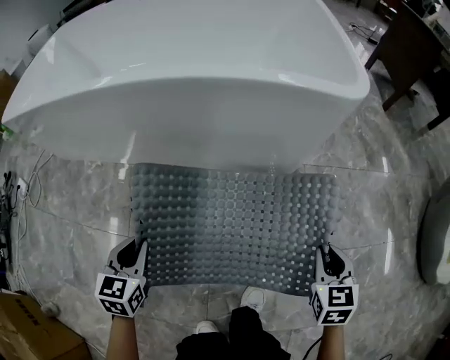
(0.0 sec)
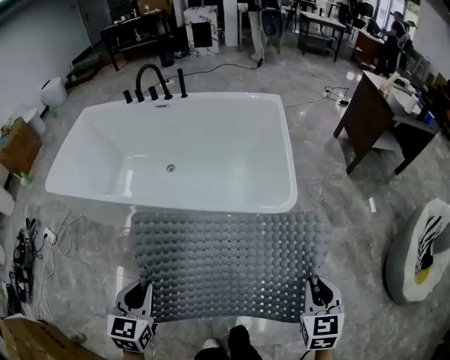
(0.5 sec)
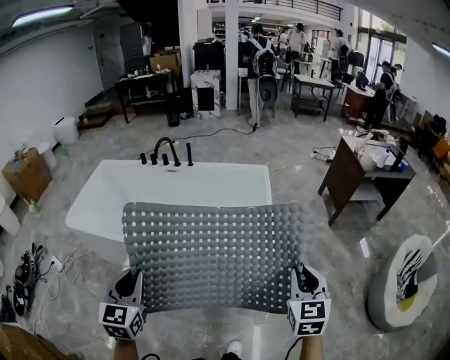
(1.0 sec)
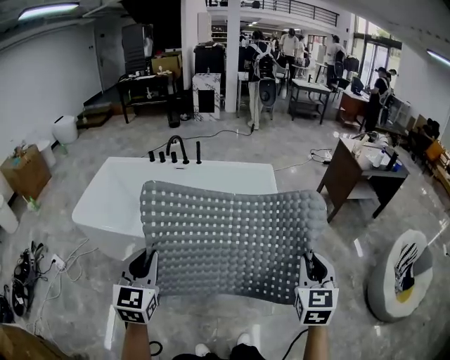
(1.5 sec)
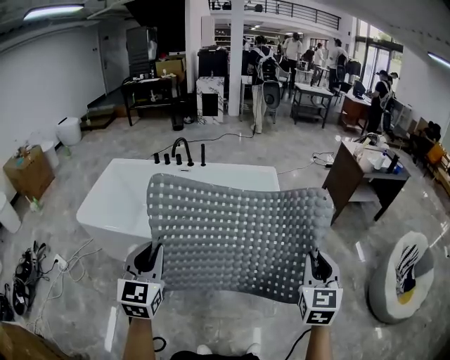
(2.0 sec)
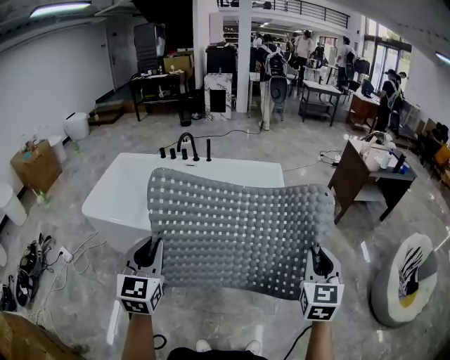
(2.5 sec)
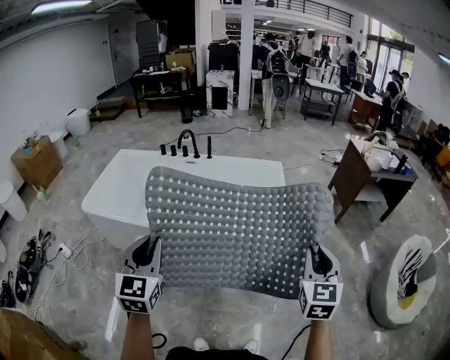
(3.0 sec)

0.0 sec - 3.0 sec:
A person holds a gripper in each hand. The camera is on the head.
0.0 sec - 1.5 sec: The grippers both shift upward by some 70 cm. The right gripper changes its angle by roughly 30 degrees. The left gripper points its fingers roughly 30 degrees further upward.
1.5 sec - 3.0 sec: The grippers stay close to where they were, moving slightly.

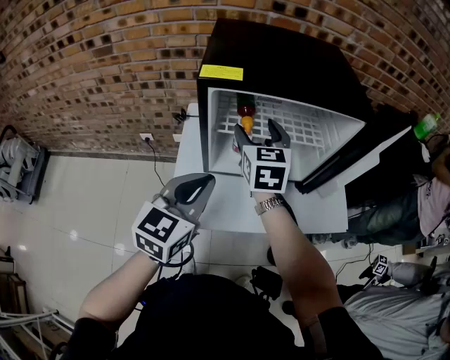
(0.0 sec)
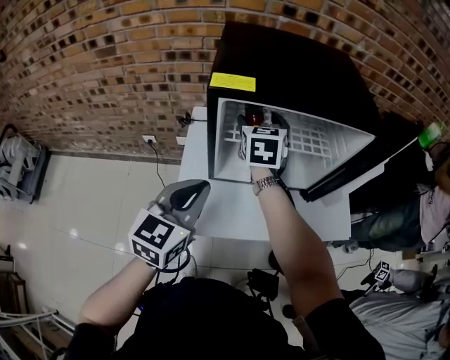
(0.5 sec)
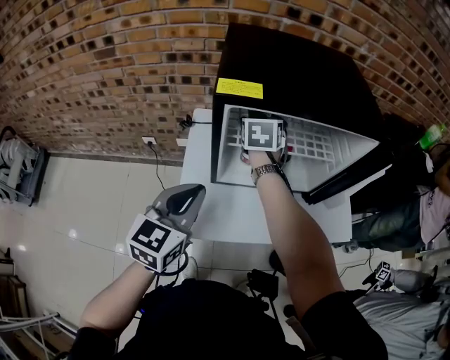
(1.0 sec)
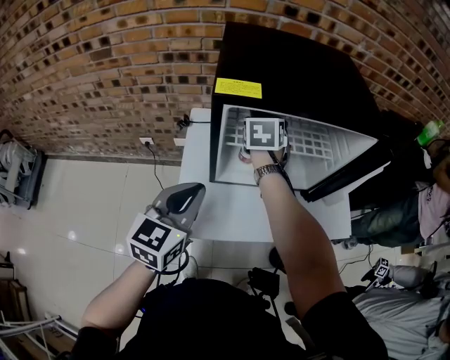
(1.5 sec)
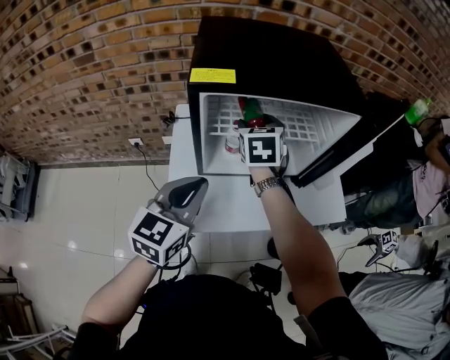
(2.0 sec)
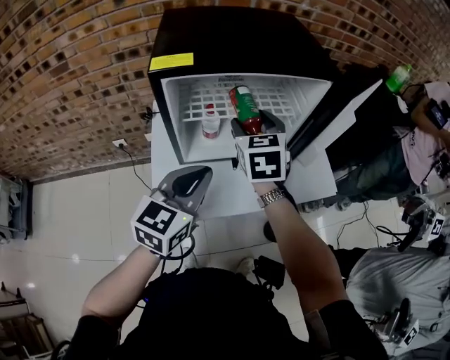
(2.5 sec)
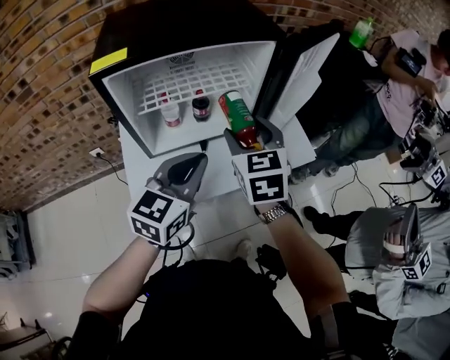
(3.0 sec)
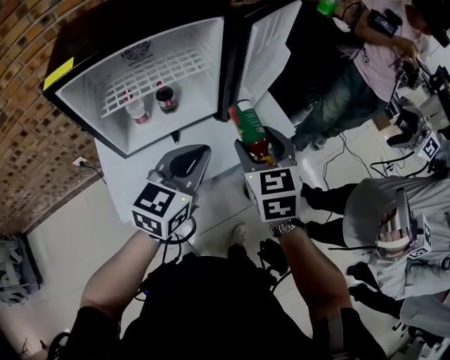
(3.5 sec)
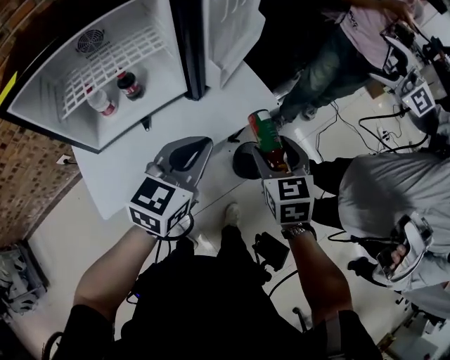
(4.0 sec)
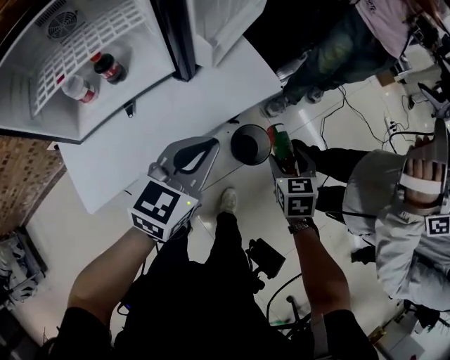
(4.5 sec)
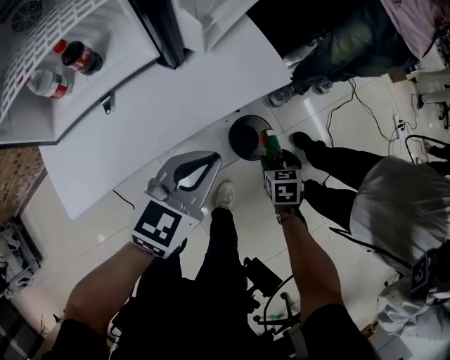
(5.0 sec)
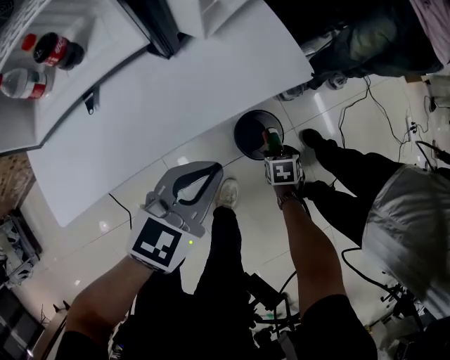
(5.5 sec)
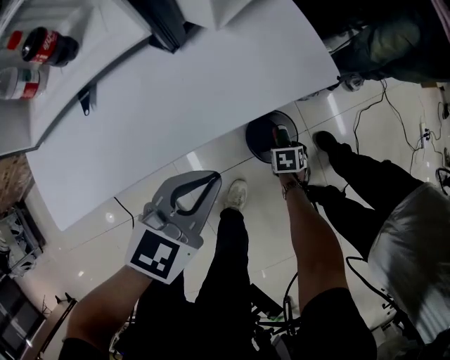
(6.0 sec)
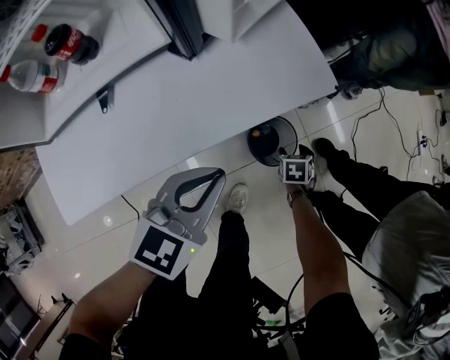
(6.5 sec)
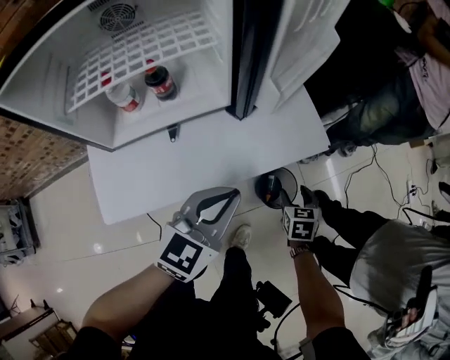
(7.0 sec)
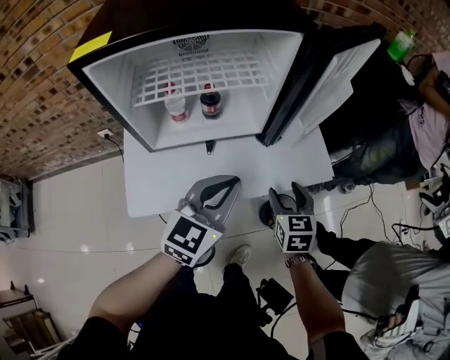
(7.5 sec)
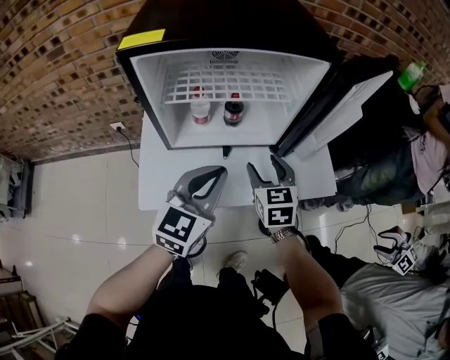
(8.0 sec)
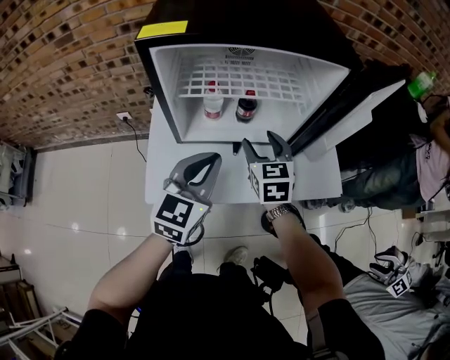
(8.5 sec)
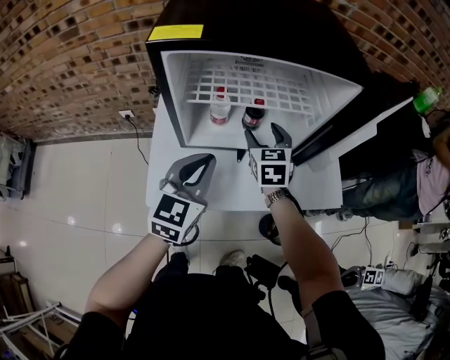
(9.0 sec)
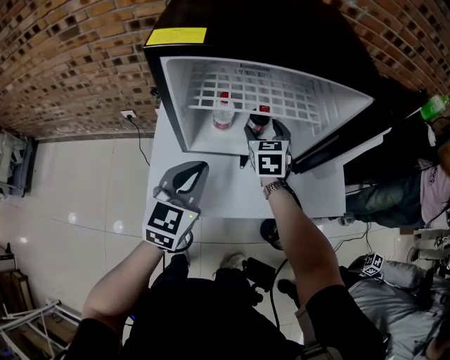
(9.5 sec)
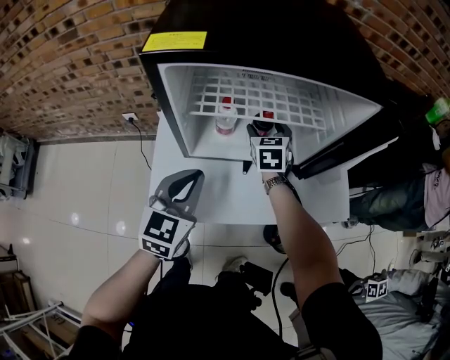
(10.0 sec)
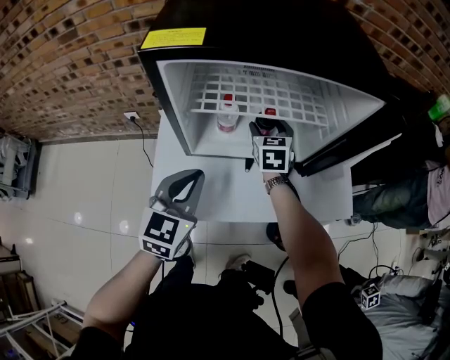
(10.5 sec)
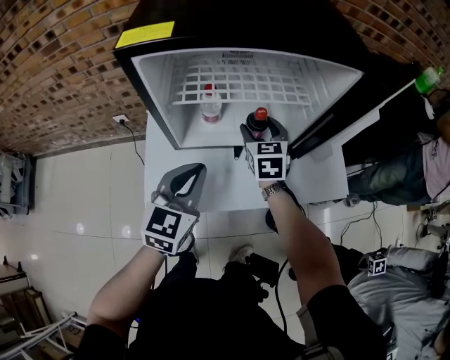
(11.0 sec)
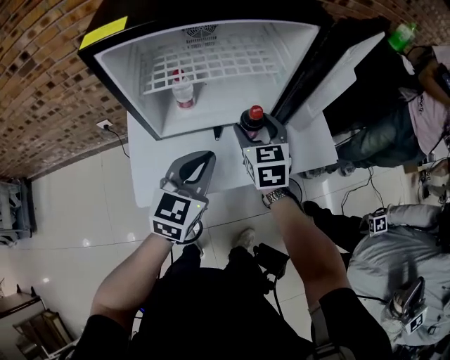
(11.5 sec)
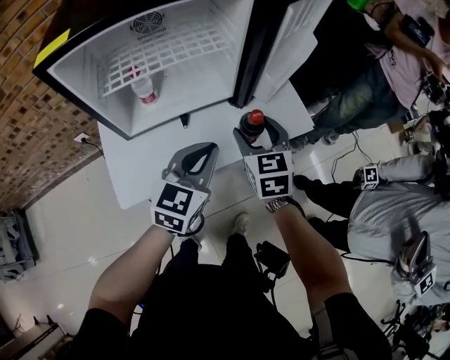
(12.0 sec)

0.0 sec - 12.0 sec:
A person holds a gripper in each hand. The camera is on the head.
0.0 sec - 2.0 sec: The right gripper shifts about 5 cm forward.
2.0 sec - 4.0 sec: The right gripper shifts by approximately 50 cm, and rotates roughly 20 degrees; the left gripper changes place by roughly 30 cm, and rotates approximately 30 degrees.
4.0 sec - 6.0 sec: The left gripper heads downward, covering about 25 cm; the right gripper shifts about 50 cm downward, and tilts its fingers about 40 degrees downward.
6.0 sec - 8.0 sec: The right gripper heads upward, covering roughly 50 cm, and tilts its fingers approximately 50 degrees upward. Meanwhile the left gripper moves upward, roughly 25 cm, and turns by roughly 30 degrees.
8.0 sec - 10.0 sec: The right gripper goes approximately 20 cm forward and to the left. The left gripper moves to the left, about 10 cm.
10.0 sec - 12.0 sec: The left gripper heads to the right, covering some 20 cm, and turns by roughly 30 degrees; the right gripper moves backward and to the right, roughly 30 cm.

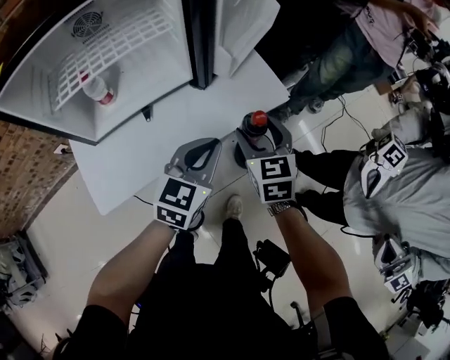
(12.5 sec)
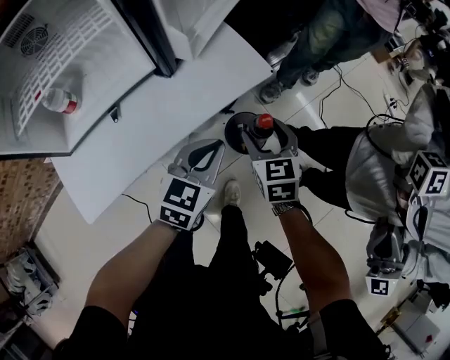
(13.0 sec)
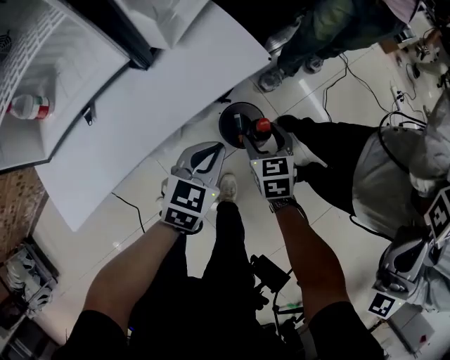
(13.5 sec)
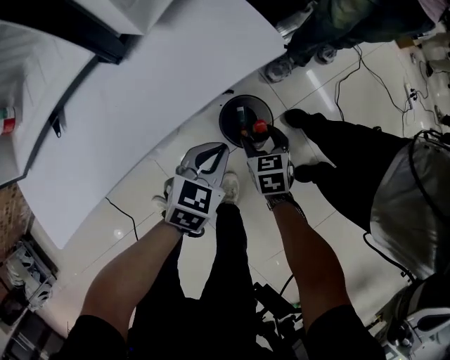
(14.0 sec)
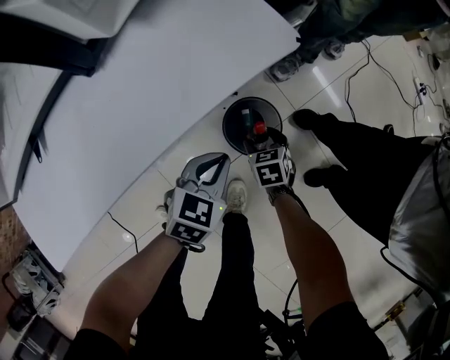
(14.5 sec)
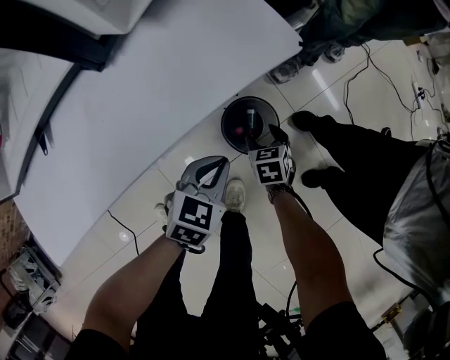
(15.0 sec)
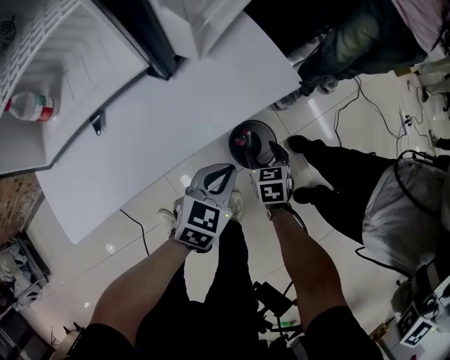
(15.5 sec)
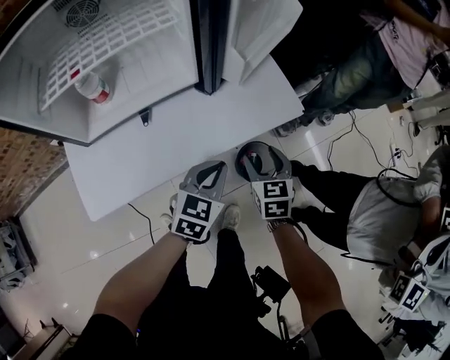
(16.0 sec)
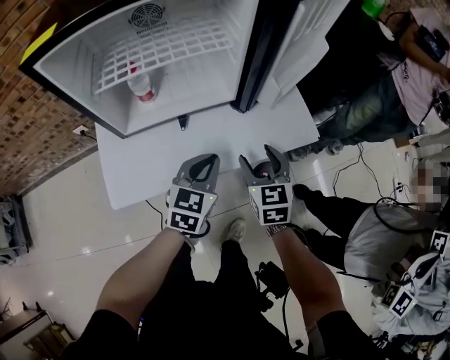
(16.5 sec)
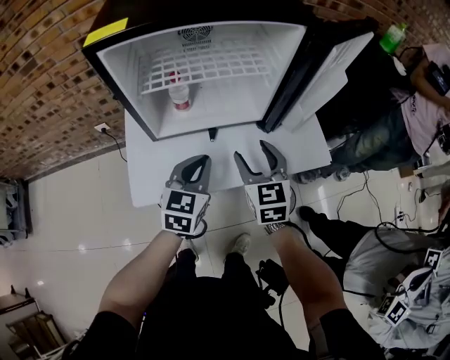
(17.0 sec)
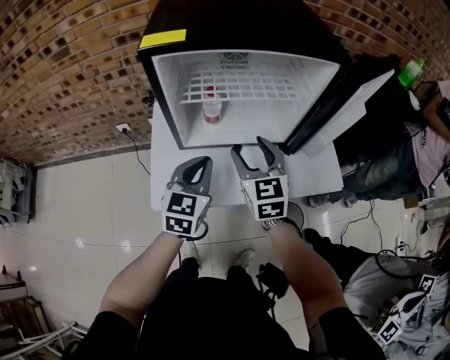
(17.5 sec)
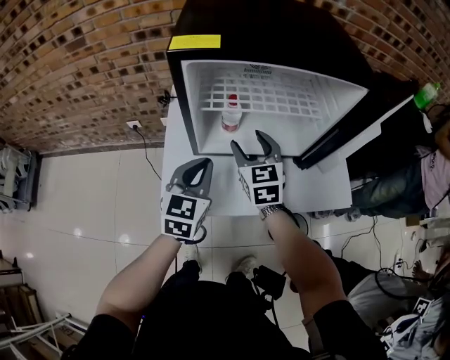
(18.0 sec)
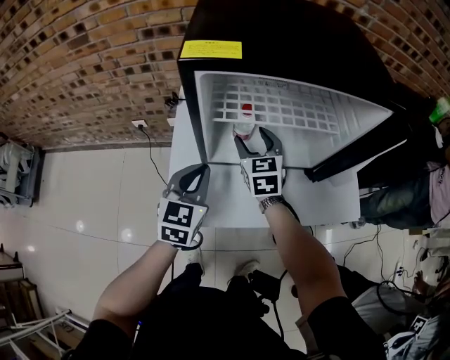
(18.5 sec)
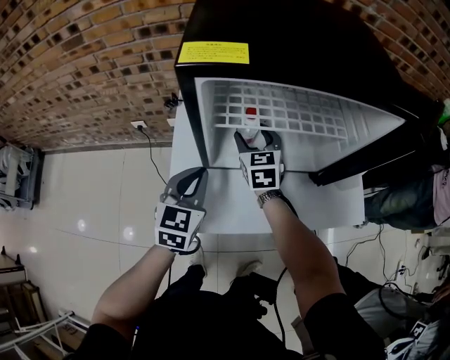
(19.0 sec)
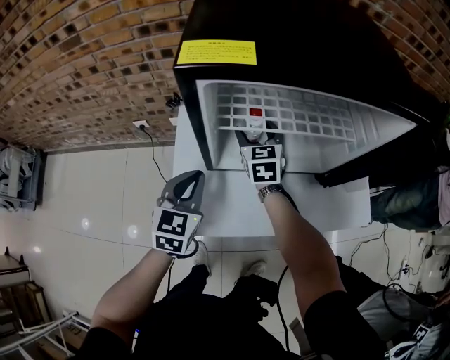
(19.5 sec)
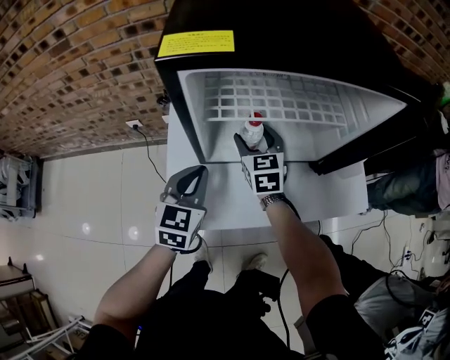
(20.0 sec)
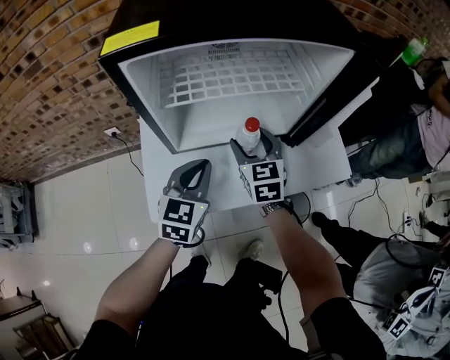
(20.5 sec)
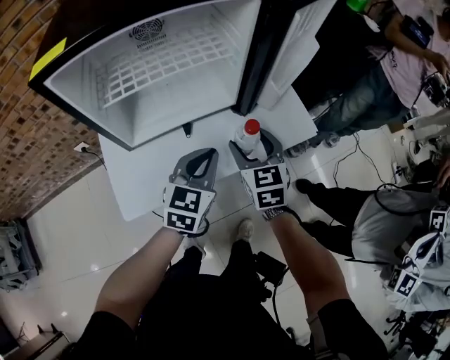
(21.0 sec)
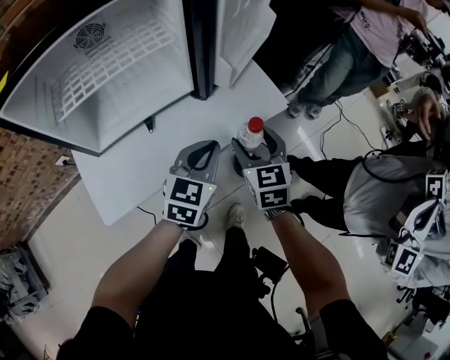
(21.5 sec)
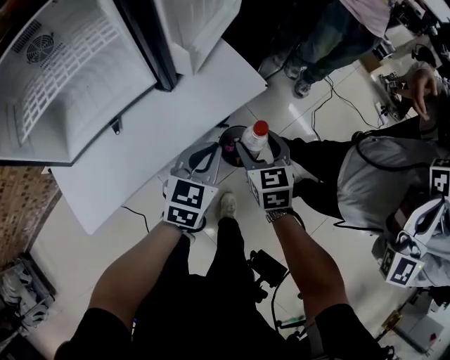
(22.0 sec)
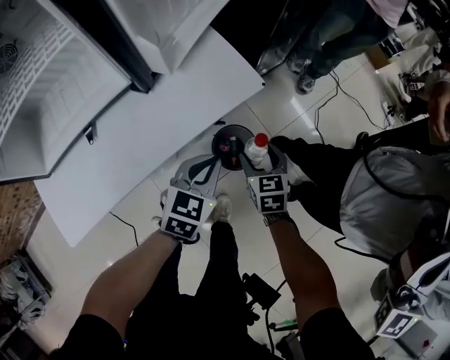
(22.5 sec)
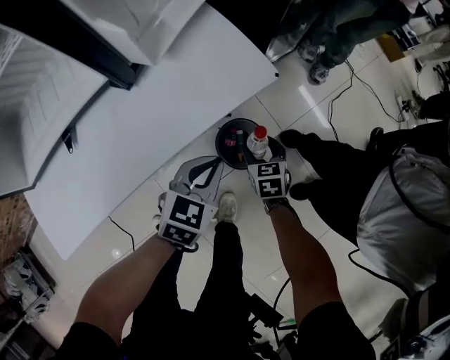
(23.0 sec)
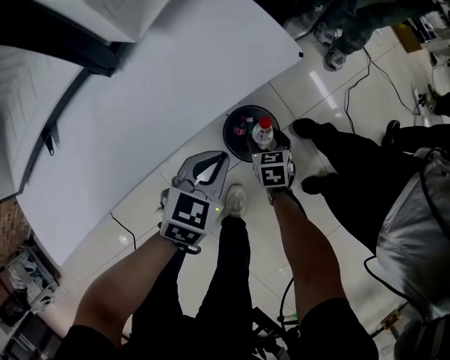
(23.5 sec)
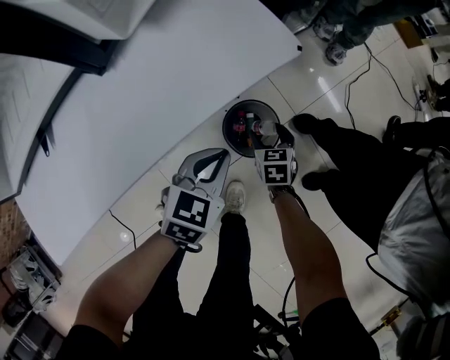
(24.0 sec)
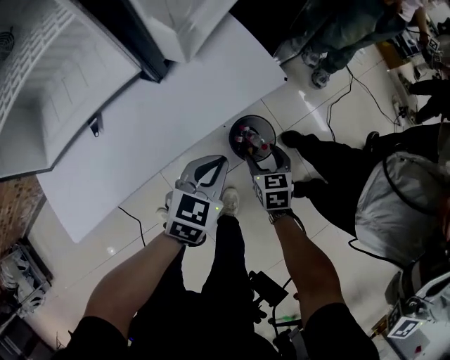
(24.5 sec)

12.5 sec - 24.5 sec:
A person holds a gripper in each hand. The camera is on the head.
12.5 sec - 14.5 sec: Both grippers travel together downward, roughly 40 cm. The right gripper tilts its fingers about 30 degrees downward. Meanwhile the left gripper changes its angle by about 30 degrees.
14.5 sec - 16.5 sec: The grippers both shift upward and to the left by approximately 40 cm. The left gripper rotates about 30 degrees. Meanwhile the right gripper tips its fingers upward by approximately 30 degrees.
16.5 sec - 18.5 sec: The left gripper travels to the left by approximately 25 cm, and rotates about 20 degrees; the right gripper goes about 35 cm to the left and forward.
18.5 sec - 20.5 sec: The right gripper heads to the right and backward, covering about 10 cm. Meanwhile the left gripper is displaced to the right by some 10 cm.
20.5 sec - 22.5 sec: The left gripper changes place by approximately 40 cm, and changes its angle by about 40 degrees. The right gripper changes place by some 50 cm, and turns by roughly 40 degrees.
22.5 sec - 24.5 sec: The right gripper reaches roughly 25 cm downward, then returns. Meanwhile the left gripper goes downward and returns, roughly 15 cm each way.
